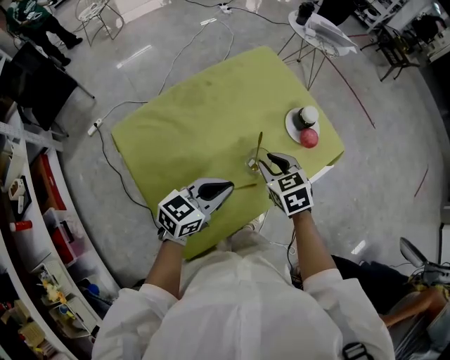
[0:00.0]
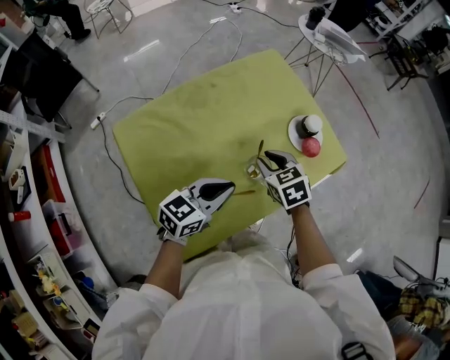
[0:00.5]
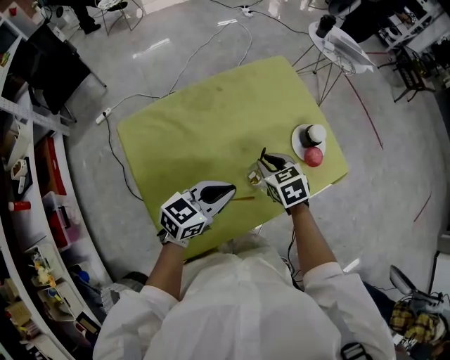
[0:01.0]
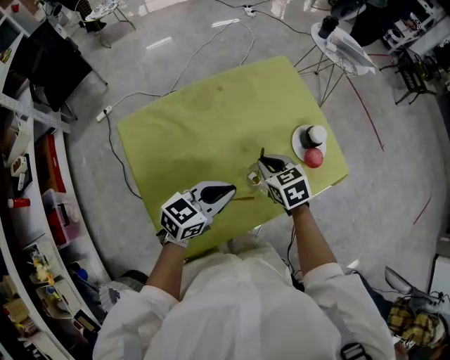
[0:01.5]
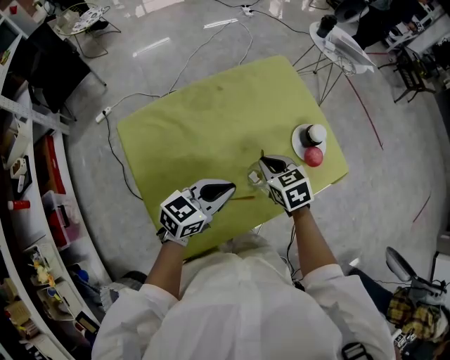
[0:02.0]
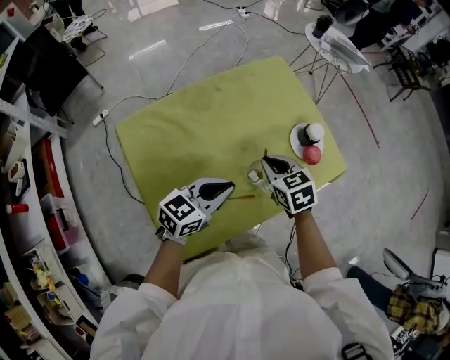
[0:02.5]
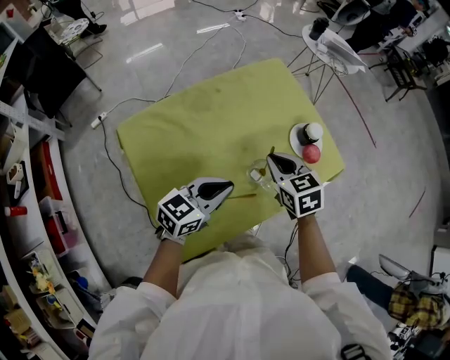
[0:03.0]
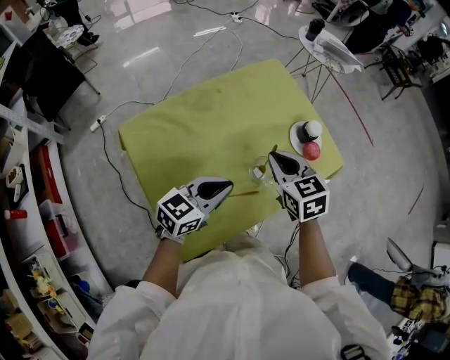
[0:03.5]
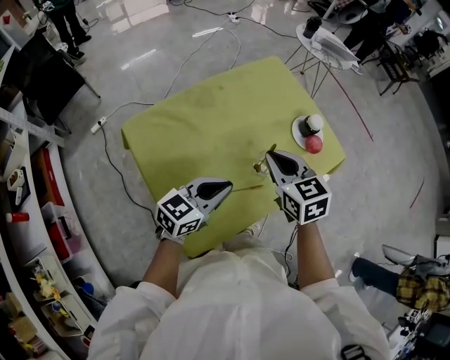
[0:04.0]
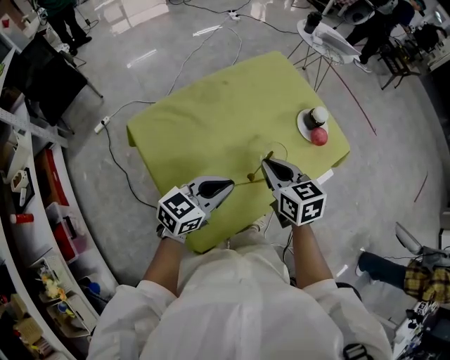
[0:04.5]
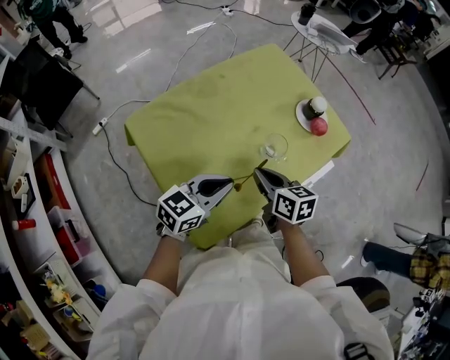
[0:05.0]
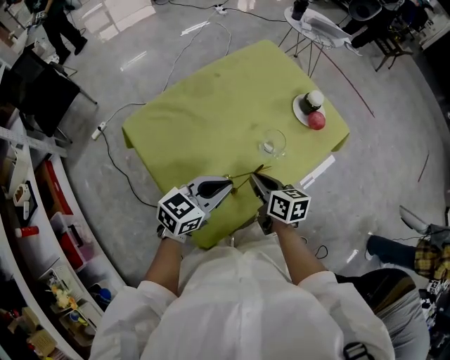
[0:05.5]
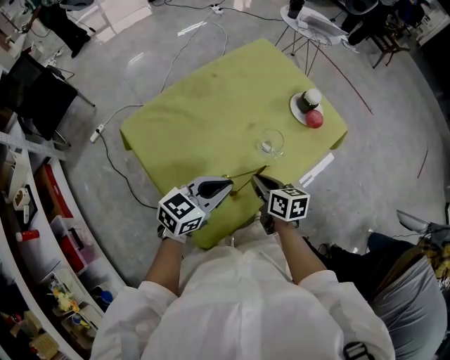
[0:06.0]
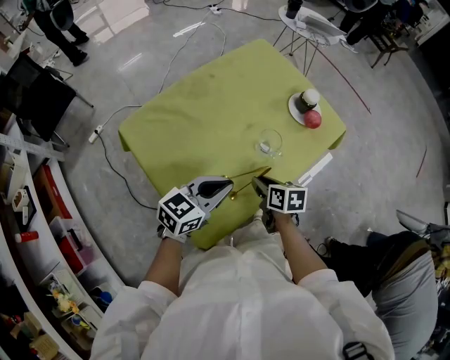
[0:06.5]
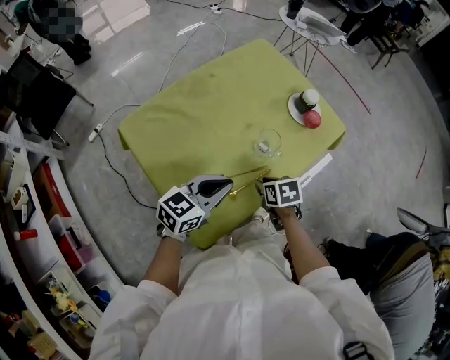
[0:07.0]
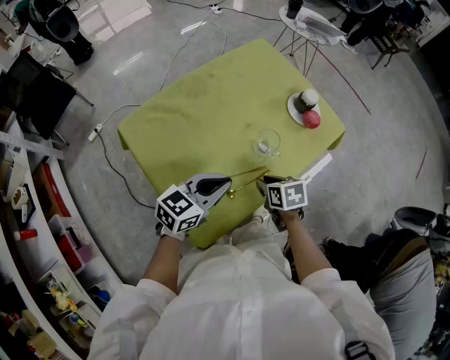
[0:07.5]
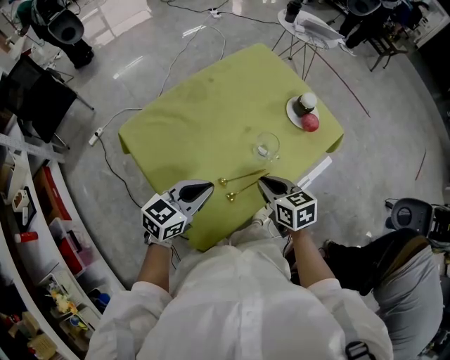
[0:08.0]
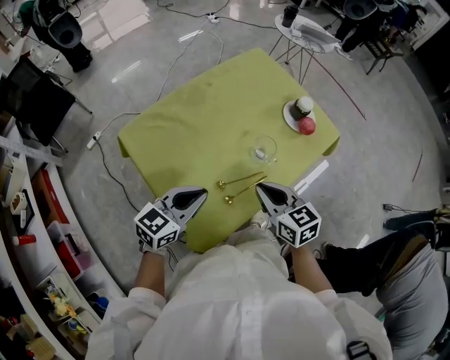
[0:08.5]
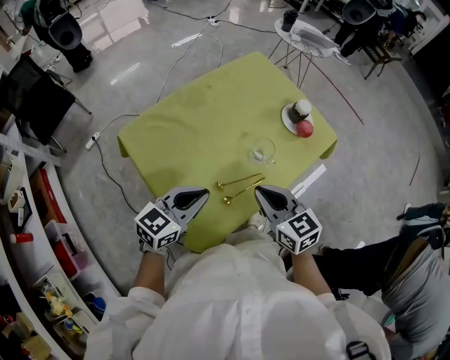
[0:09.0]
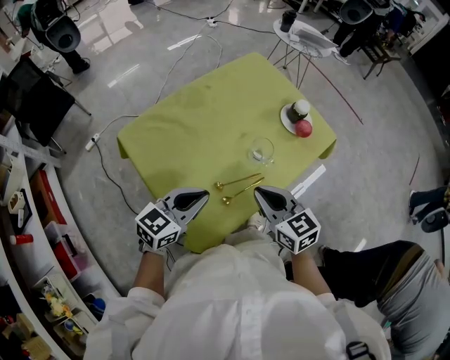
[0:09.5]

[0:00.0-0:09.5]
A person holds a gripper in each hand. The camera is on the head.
0:00.0 to 0:02.0: The right gripper closes its fingers.
0:02.0 to 0:04.0: The right gripper travels upward by about 10 cm; the left gripper ends up about 5 cm from where it was.
0:04.0 to 0:05.5: The right gripper moves downward and backward, about 15 cm, and rotates approximately 40 degrees.
0:05.5 to 0:07.5: The right gripper is displaced to the right by about 5 cm, changes its angle by some 30 degrees, and opens.
0:07.5 to 0:09.5: The right gripper moves upward, about 15 cm, tips its fingers upward by about 30 degrees, and closes up. The left gripper shifts by about 5 cm.

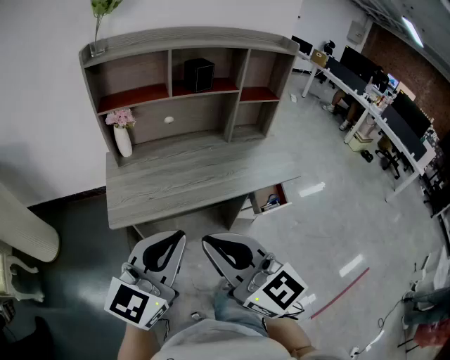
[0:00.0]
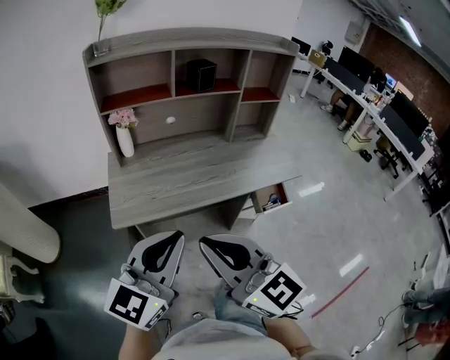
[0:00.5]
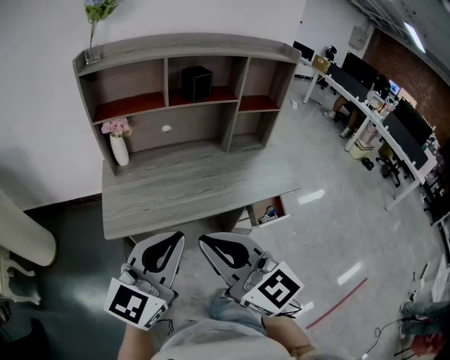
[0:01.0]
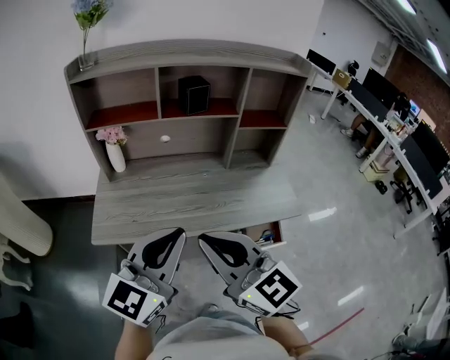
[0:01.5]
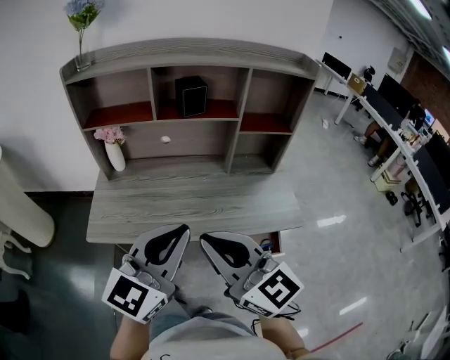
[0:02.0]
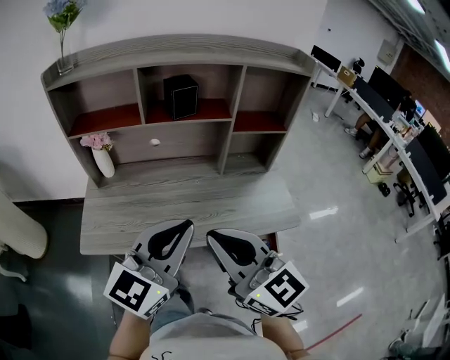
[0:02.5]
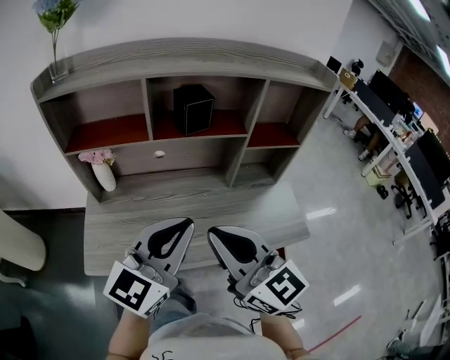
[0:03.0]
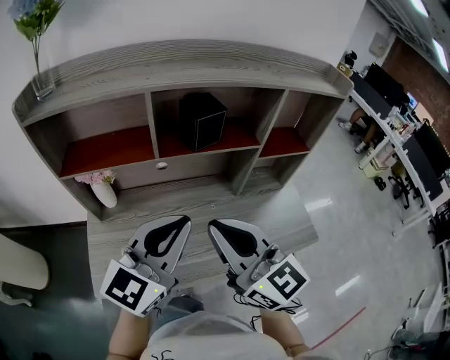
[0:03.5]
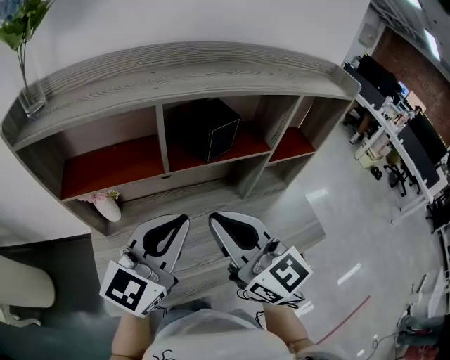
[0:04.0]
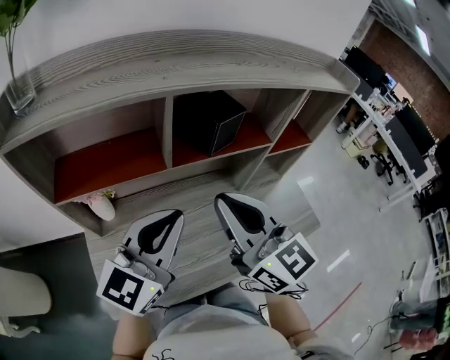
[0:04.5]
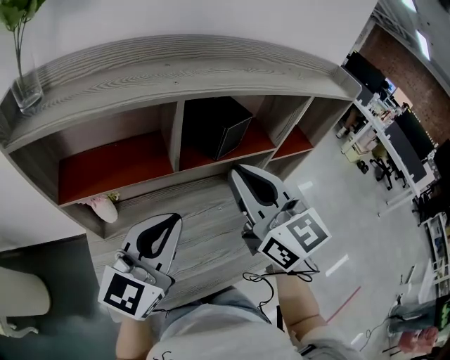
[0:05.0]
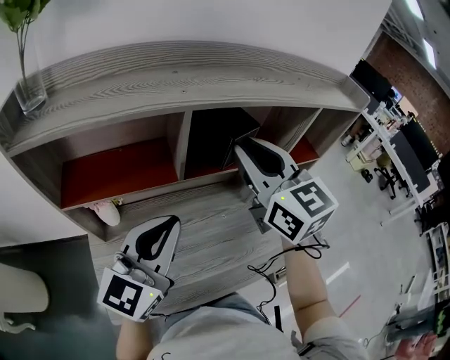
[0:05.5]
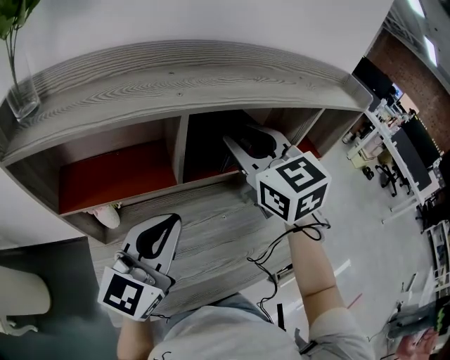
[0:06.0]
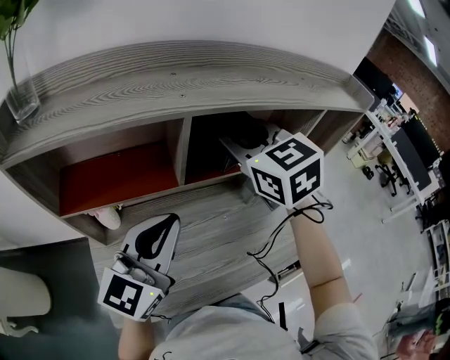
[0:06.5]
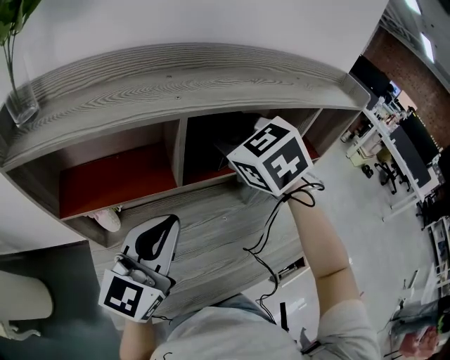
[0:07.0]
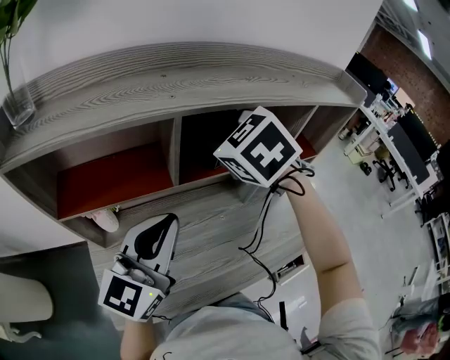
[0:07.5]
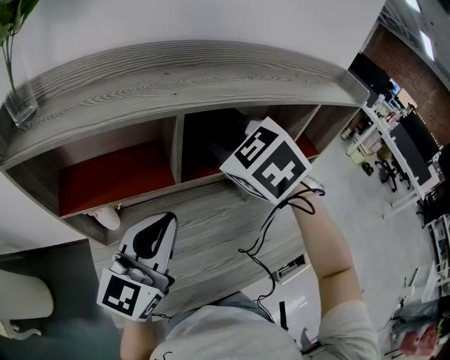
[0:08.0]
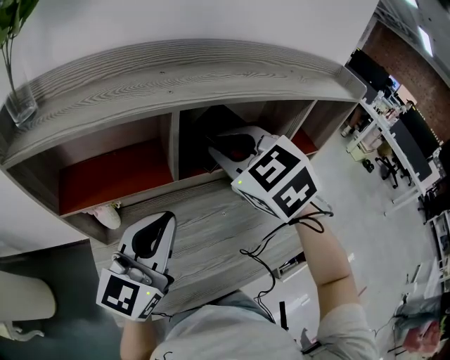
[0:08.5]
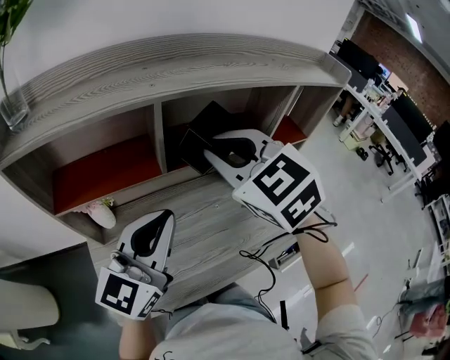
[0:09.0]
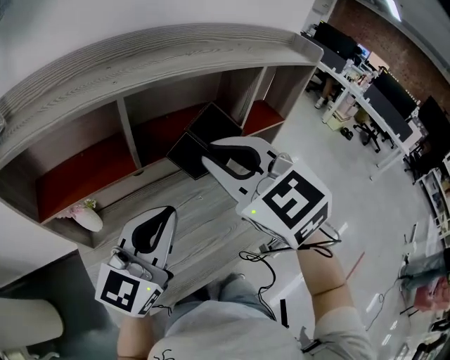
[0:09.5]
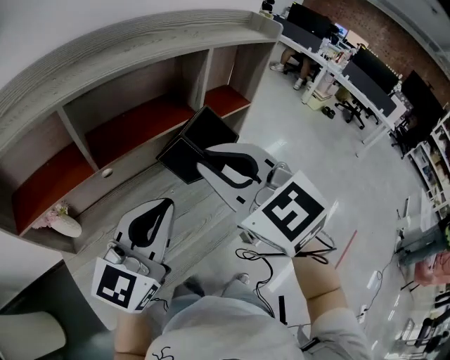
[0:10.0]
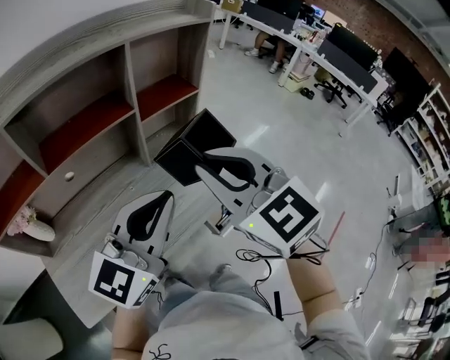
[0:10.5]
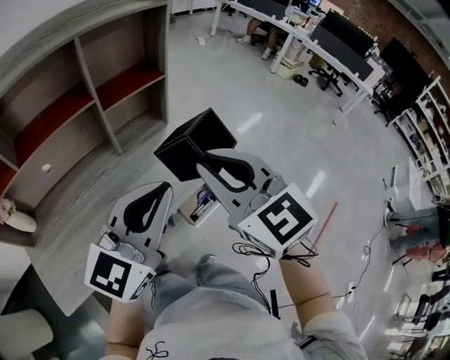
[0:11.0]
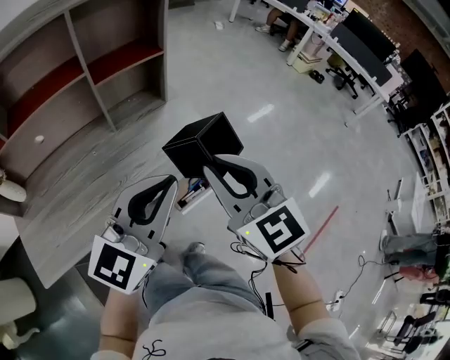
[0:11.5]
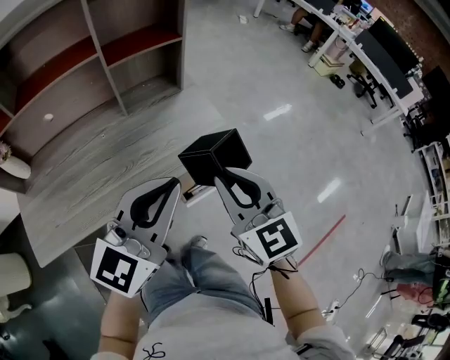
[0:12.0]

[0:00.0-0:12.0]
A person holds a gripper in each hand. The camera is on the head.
0:00.0 to 0:02.0: Both grippers travel together to the right and forward, approximately 25 cm.
0:02.0 to 0:04.0: Both grippers move forward and to the left, some 30 cm.
0:04.0 to 0:06.0: The left gripper shifts approximately 5 cm to the left; the right gripper moves forward, approximately 20 cm, swivels roughly 30 degrees, and opens up.
0:06.0 to 0:08.0: The right gripper changes its angle by about 30 degrees.
0:08.0 to 0:10.0: The left gripper travels to the right by roughly 15 cm. Meanwhile the right gripper travels to the right and backward by some 20 cm, and rotates approximately 30 degrees.
0:10.0 to 0:12.0: The right gripper goes approximately 40 cm to the right and downward, while the left gripper is displaced to the right by approximately 35 cm.

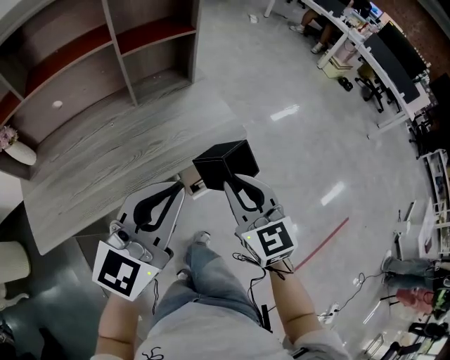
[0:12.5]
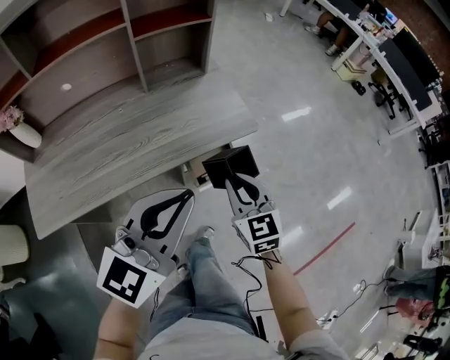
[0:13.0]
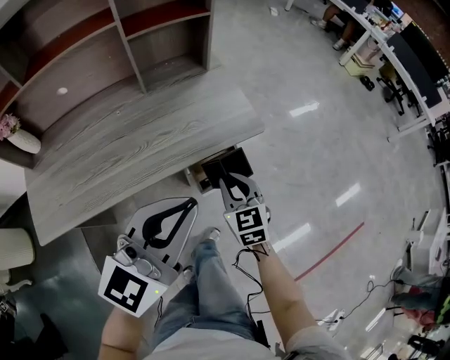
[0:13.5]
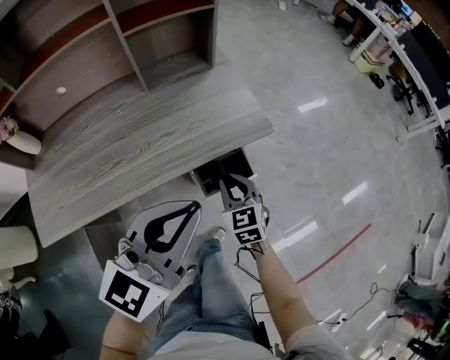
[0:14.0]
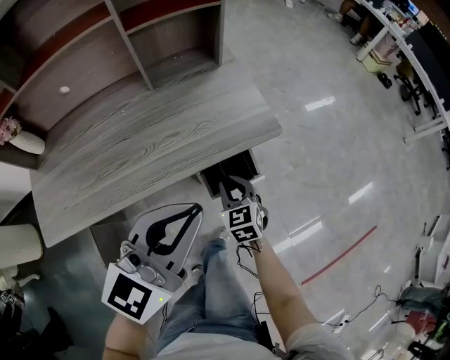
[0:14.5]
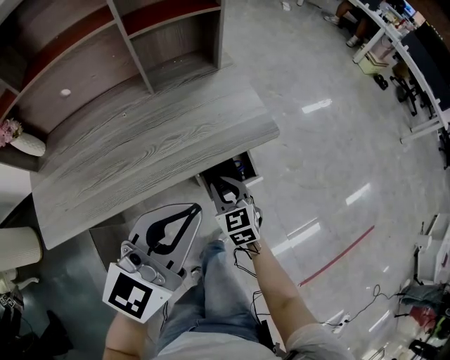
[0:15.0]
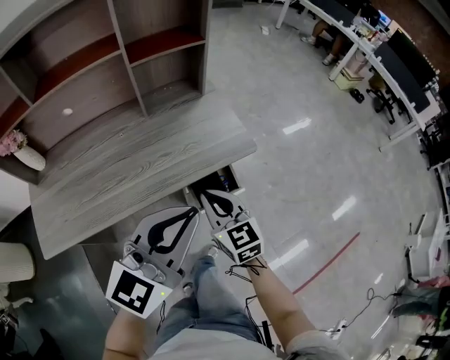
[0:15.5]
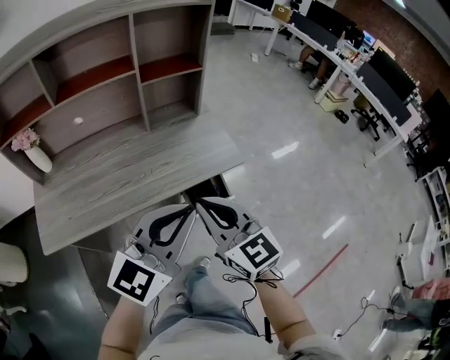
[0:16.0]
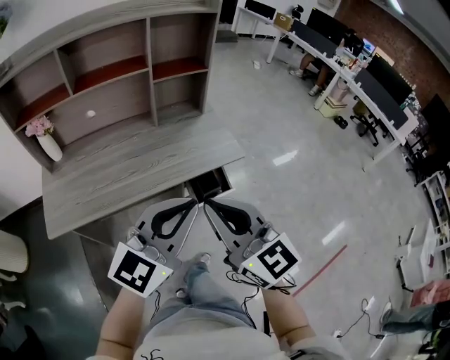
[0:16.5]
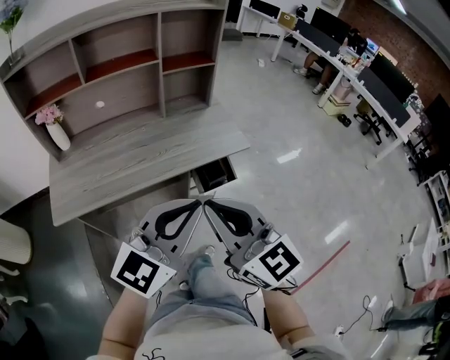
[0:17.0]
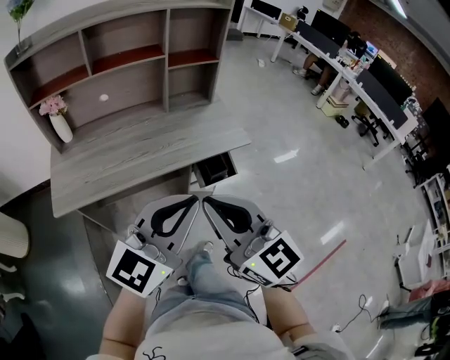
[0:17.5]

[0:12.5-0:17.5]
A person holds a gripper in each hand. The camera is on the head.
0:12.5 to 0:15.0: The right gripper heads downward, covering about 25 cm. The left gripper goes about 5 cm downward.
0:15.0 to 0:17.5: The right gripper moves upward and backward, some 50 cm, and angles its fingers upward, by some 30 degrees. The left gripper goes some 25 cm backward and upward.
